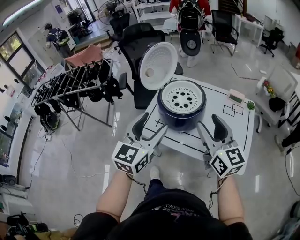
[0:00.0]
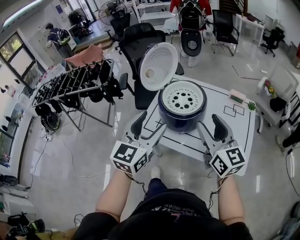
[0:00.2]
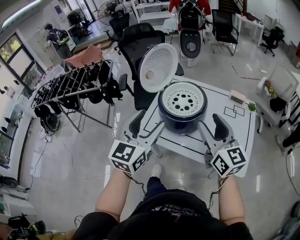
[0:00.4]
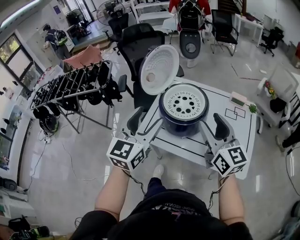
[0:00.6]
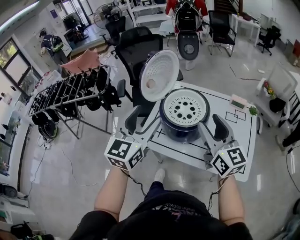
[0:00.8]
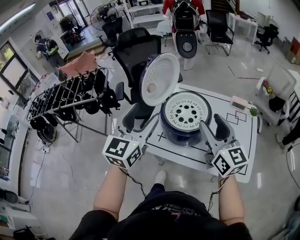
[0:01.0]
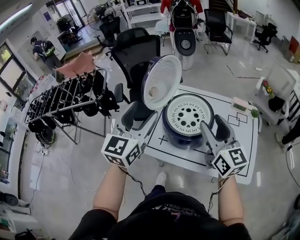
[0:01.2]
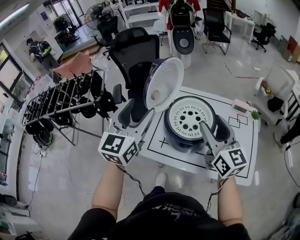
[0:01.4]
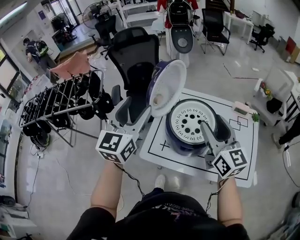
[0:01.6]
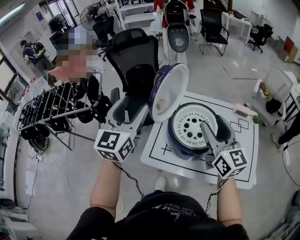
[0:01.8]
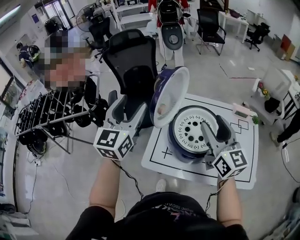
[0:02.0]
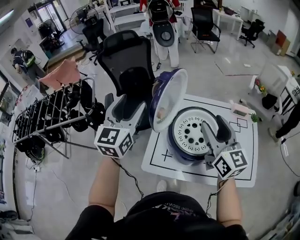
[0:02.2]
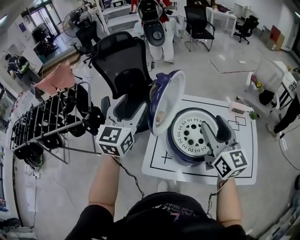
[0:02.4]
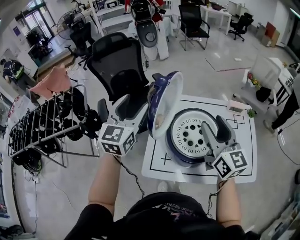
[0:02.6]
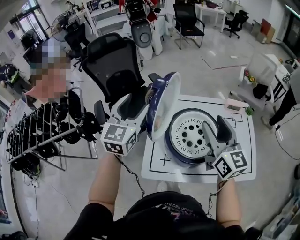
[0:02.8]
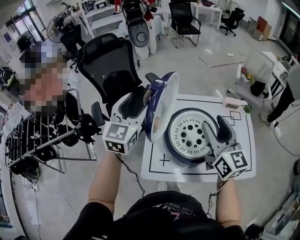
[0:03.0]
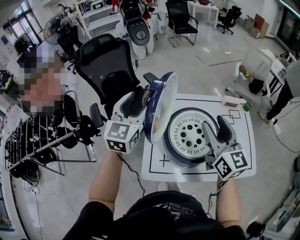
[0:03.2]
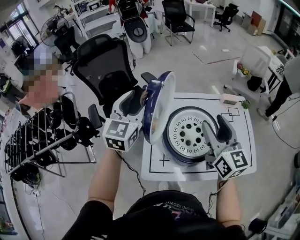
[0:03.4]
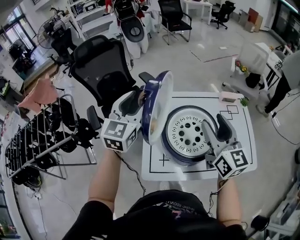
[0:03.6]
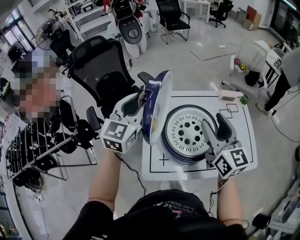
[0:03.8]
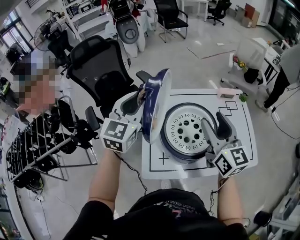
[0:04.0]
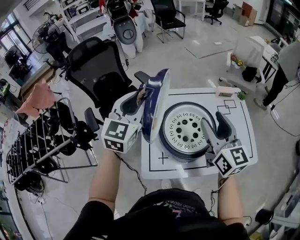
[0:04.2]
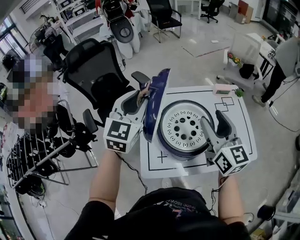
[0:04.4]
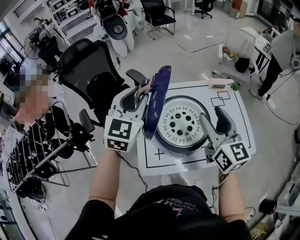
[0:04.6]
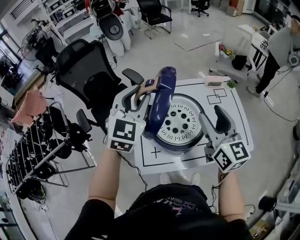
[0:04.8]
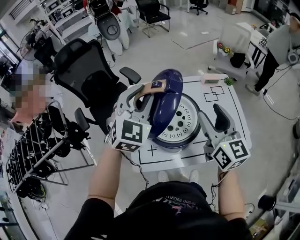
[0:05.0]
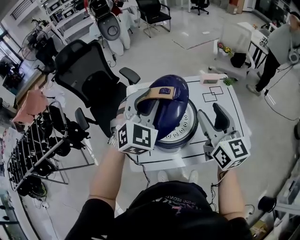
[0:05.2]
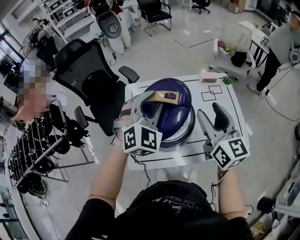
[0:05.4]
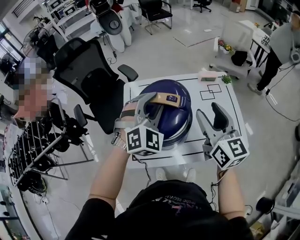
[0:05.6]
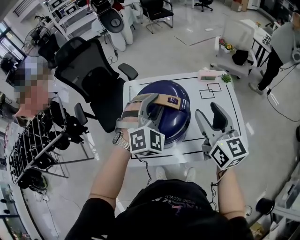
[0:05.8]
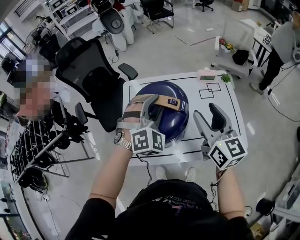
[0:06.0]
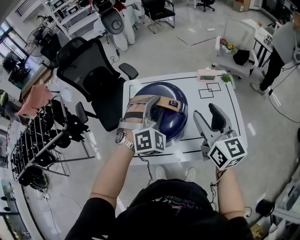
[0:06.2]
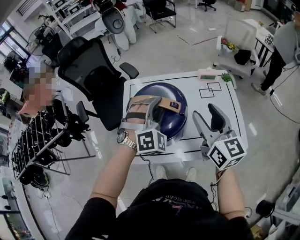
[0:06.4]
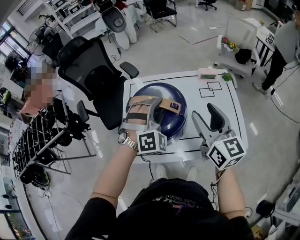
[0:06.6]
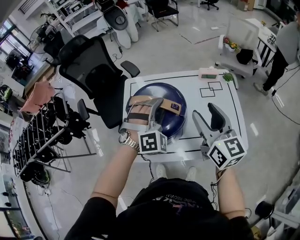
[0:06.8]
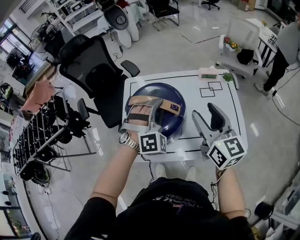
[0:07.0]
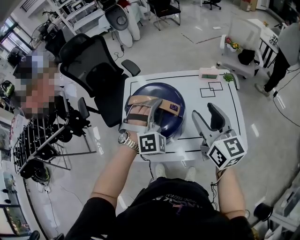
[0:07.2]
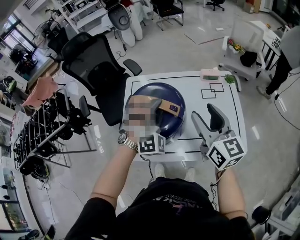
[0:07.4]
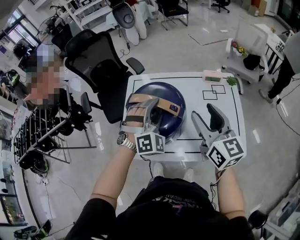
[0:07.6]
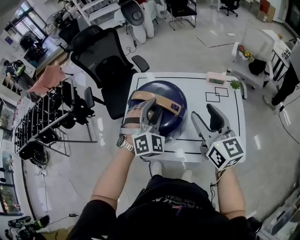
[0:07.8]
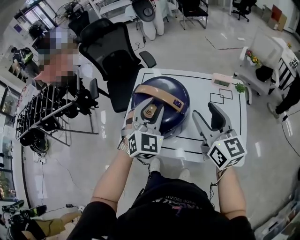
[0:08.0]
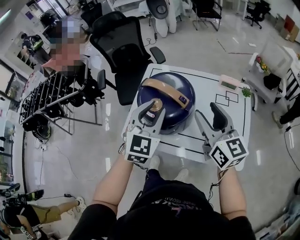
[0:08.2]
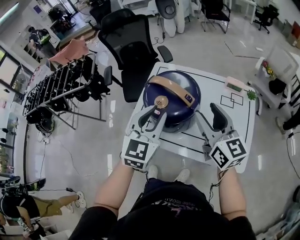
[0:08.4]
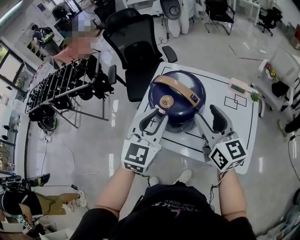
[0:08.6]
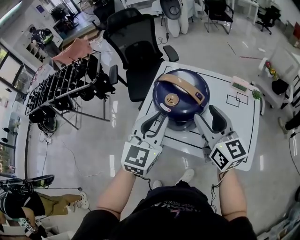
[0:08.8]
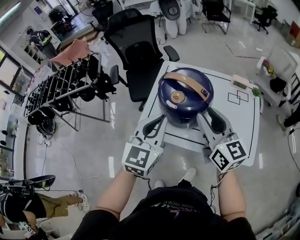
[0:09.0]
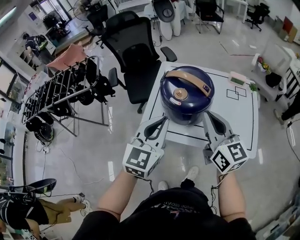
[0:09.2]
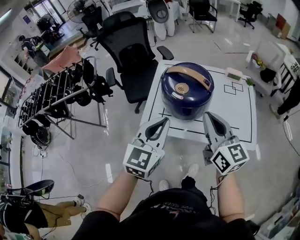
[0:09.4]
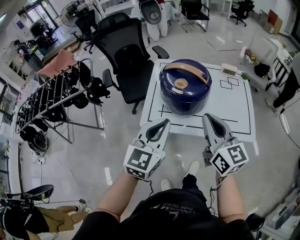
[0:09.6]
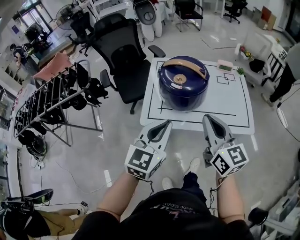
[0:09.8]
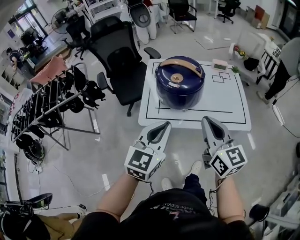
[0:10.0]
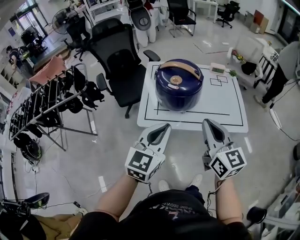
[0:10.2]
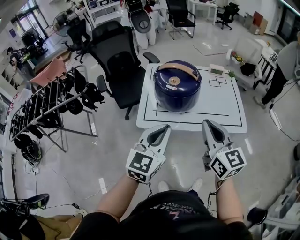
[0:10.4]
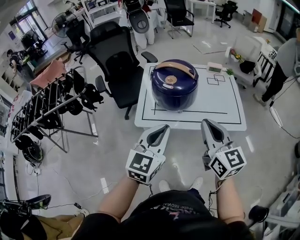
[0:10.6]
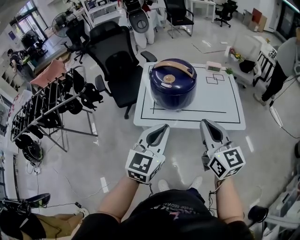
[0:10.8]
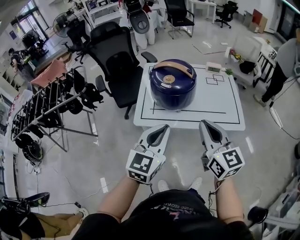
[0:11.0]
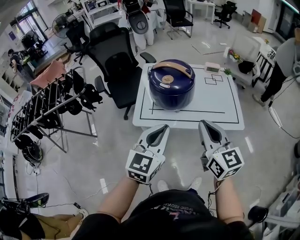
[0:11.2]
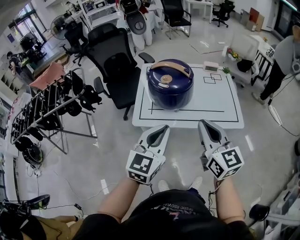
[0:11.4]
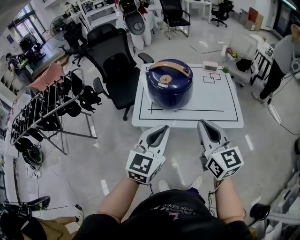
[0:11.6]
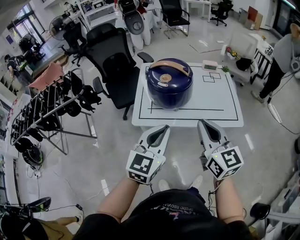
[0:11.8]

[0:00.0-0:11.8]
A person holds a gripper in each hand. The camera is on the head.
0:00.0 to 0:01.4: The grippers both shift forward and to the left by approximately 15 cm.
0:01.4 to 0:03.0: The right gripper travels forward by approximately 10 cm, while the left gripper shifts about 20 cm forward.
0:03.0 to 0:04.4: The left gripper moves to the right, some 5 cm, and closes up.
0:04.4 to 0:06.0: The right gripper moves to the right, roughly 10 cm; the left gripper moves to the right, about 20 cm, and rolls clockwise, seen from behind, by about 50 degrees.
0:06.0 to 0:07.4: The left gripper ends up about 5 cm from where it was.
0:07.4 to 0:08.8: The right gripper shifts about 5 cm to the left, and changes its angle by about 20 degrees. The left gripper moves backward, to the left and upward, roughly 20 cm, and rolls counterclockwise, seen from behind, by approximately 70 degrees.
0:08.8 to 0:10.4: Both grippers move backward, some 20 cm. The left gripper swivels about 20 degrees; the right gripper closes up.
0:10.4 to 0:11.8: The grippers move only a little.

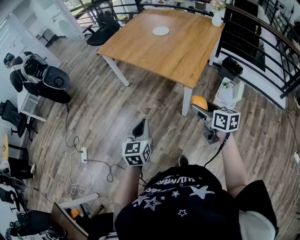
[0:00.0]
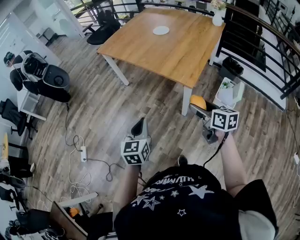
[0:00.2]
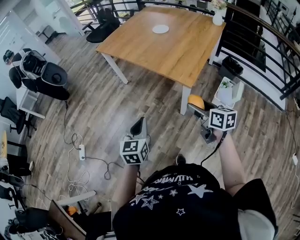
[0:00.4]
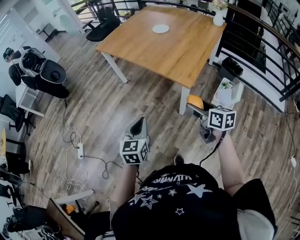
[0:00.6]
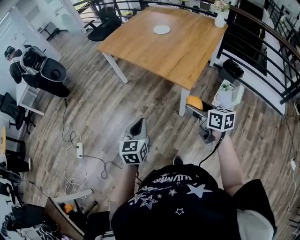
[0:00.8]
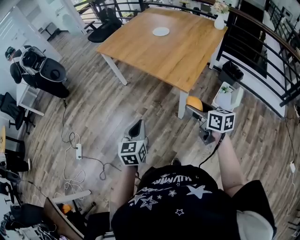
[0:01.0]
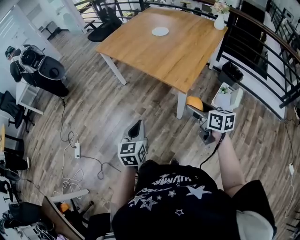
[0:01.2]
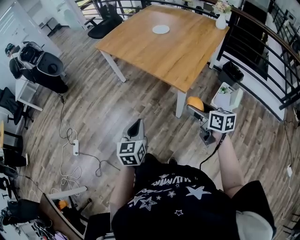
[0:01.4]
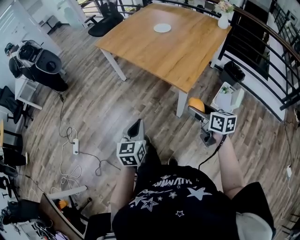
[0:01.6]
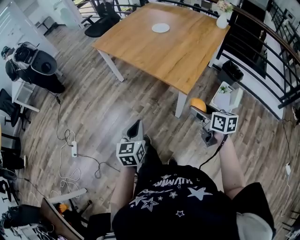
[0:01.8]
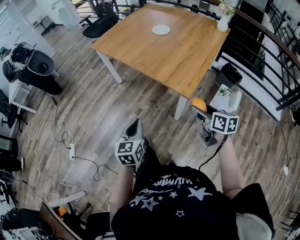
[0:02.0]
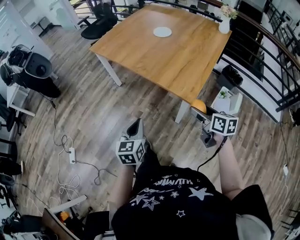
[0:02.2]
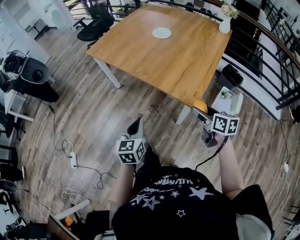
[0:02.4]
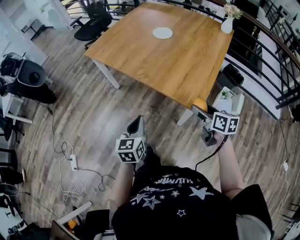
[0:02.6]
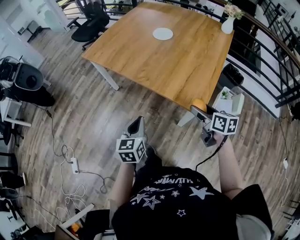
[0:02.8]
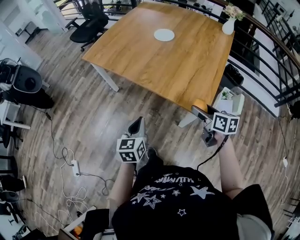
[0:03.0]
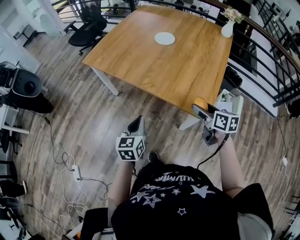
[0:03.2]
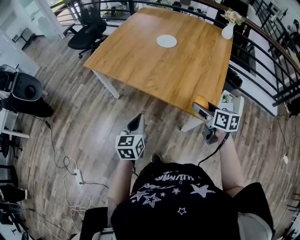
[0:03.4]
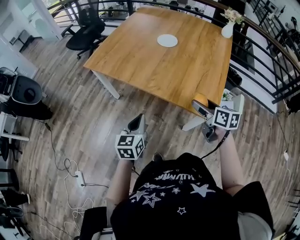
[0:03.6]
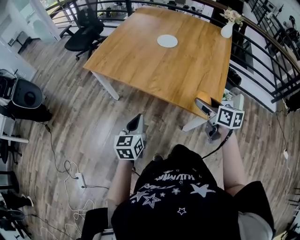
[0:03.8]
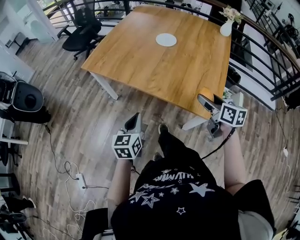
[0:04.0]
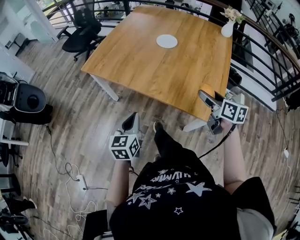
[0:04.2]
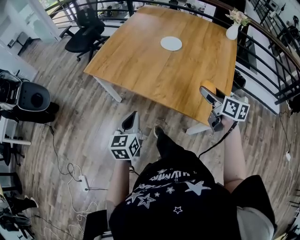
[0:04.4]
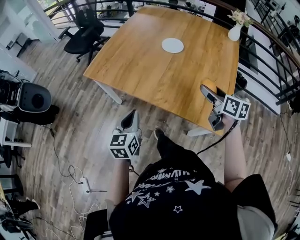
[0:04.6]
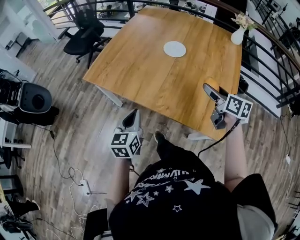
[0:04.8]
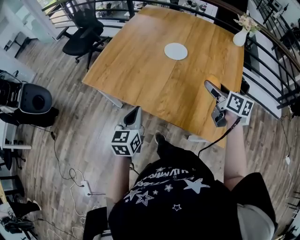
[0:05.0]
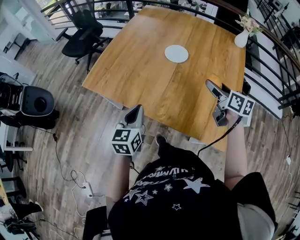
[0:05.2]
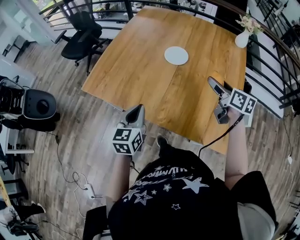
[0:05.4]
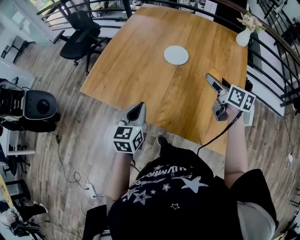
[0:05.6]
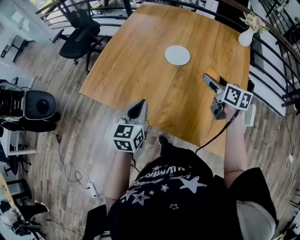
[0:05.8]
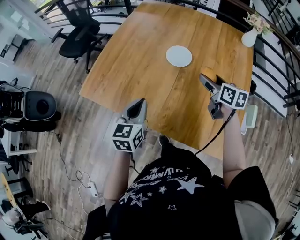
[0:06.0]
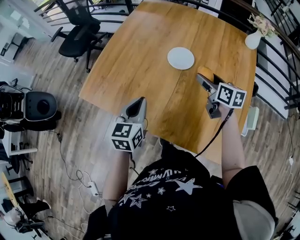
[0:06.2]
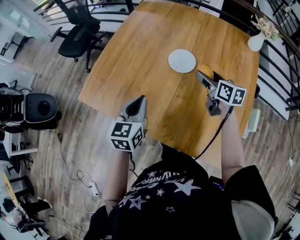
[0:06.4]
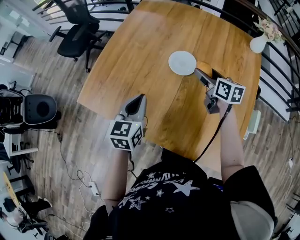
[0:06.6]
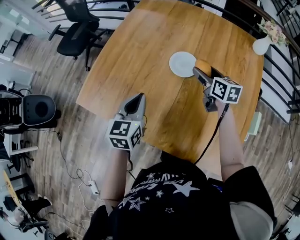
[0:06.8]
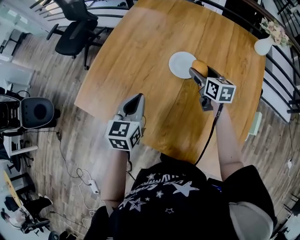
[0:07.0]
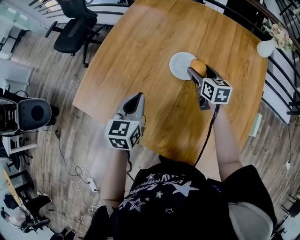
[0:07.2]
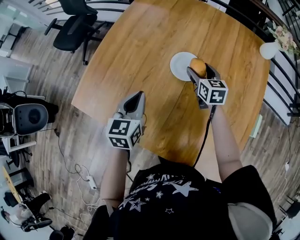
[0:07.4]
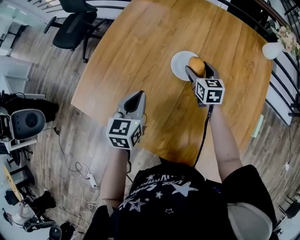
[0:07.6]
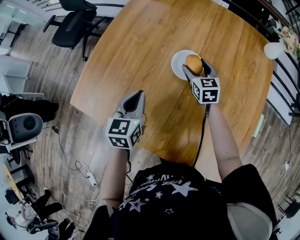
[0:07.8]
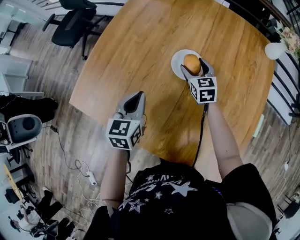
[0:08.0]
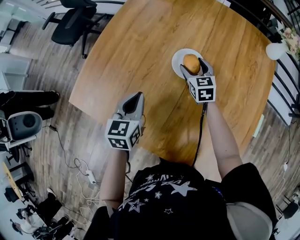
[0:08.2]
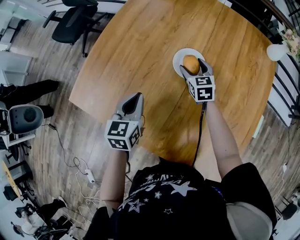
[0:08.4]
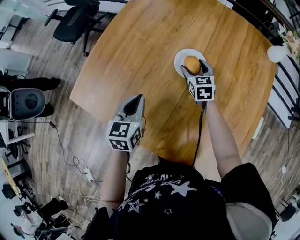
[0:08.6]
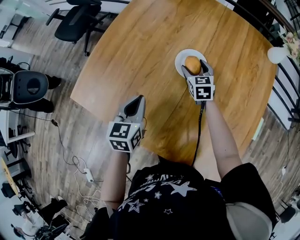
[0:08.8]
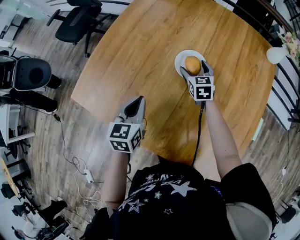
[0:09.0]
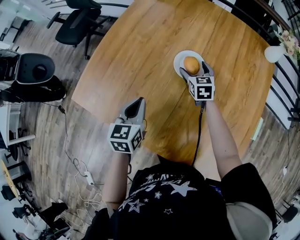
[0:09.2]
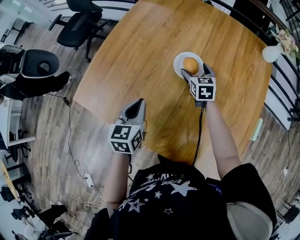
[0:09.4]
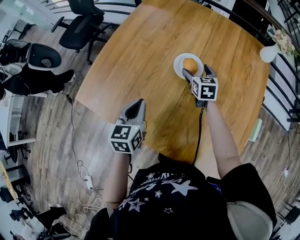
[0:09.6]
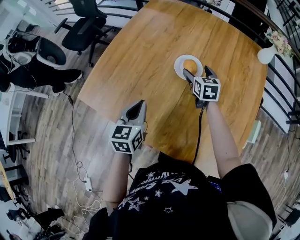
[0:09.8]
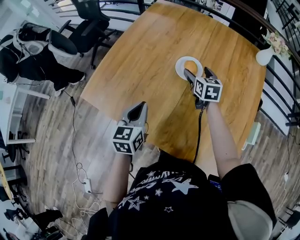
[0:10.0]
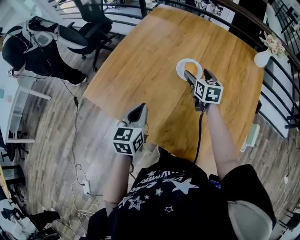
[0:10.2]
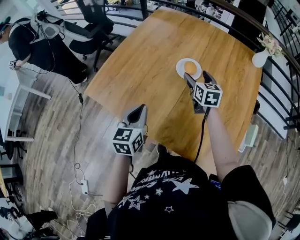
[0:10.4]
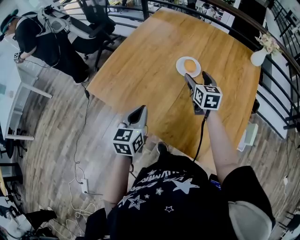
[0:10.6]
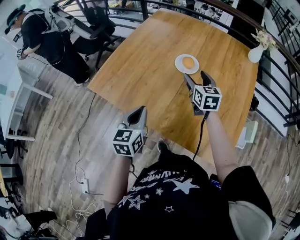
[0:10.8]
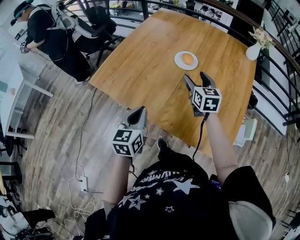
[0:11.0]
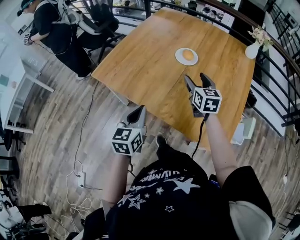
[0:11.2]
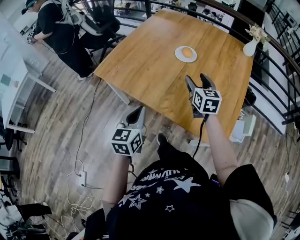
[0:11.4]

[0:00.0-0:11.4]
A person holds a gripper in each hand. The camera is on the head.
0:00.0 to 0:01.4: The left gripper ends up some 5 cm from where it was. Meanwhile the right gripper shifts by some 5 cm.
0:01.4 to 0:02.8: The grippers both shift forward by some 20 cm.
0:02.8 to 0:04.2: The left gripper heads forward and to the left, covering roughly 15 cm; the right gripper is displaced forward, upward and to the left by approximately 15 cm.
0:04.2 to 0:05.6: The grippers both shift forward by approximately 25 cm.
0:05.6 to 0:07.2: The left gripper goes roughly 20 cm forward, while the right gripper shifts approximately 25 cm forward and downward.
0:07.2 to 0:08.6: The right gripper is displaced downward by some 5 cm.
0:08.6 to 0:10.0: The right gripper moves upward and backward, approximately 10 cm; the left gripper shifts about 5 cm backward.
0:10.0 to 0:11.4: Both grippers move backward, about 25 cm.
